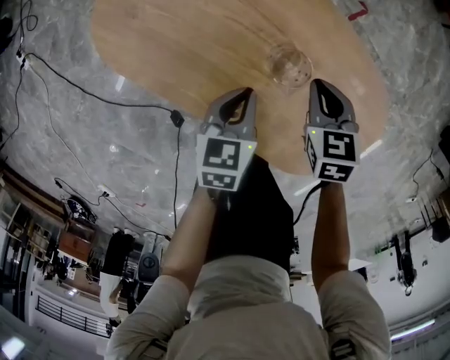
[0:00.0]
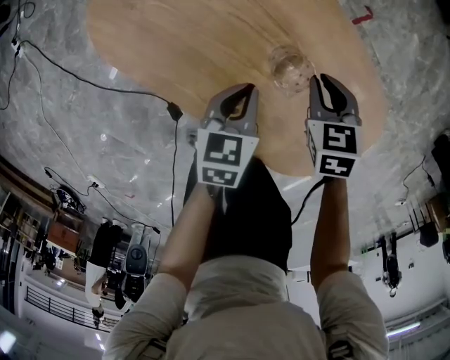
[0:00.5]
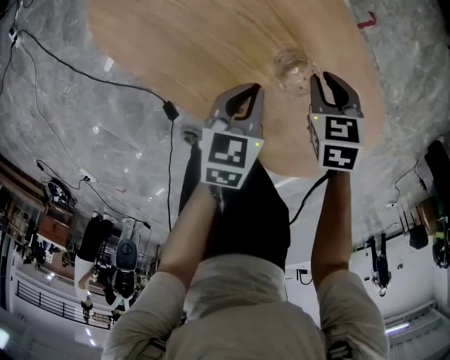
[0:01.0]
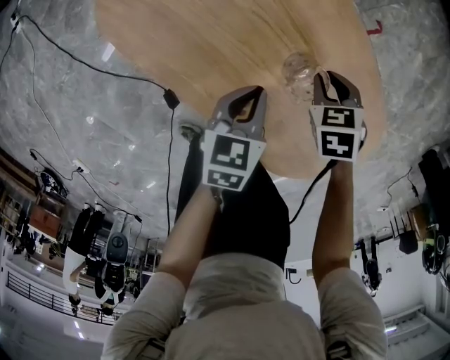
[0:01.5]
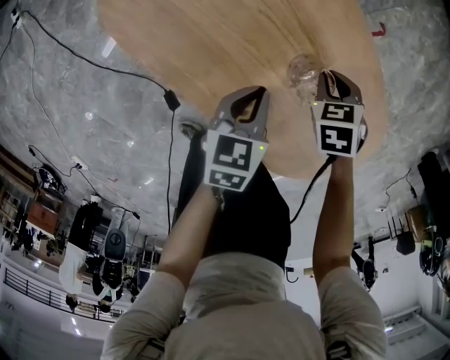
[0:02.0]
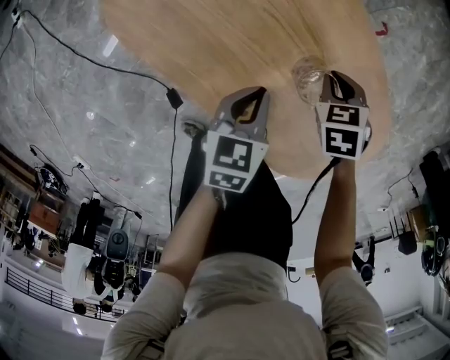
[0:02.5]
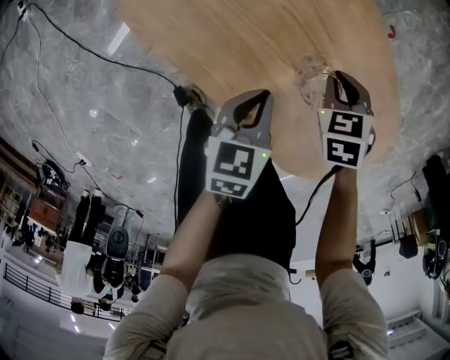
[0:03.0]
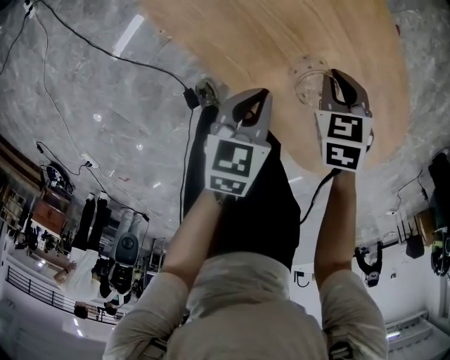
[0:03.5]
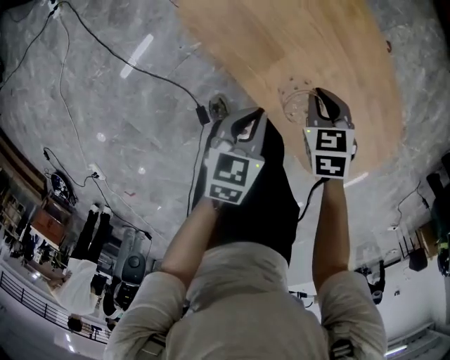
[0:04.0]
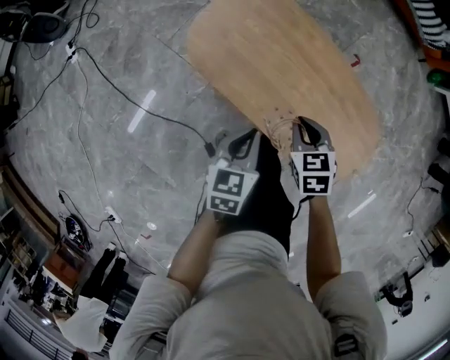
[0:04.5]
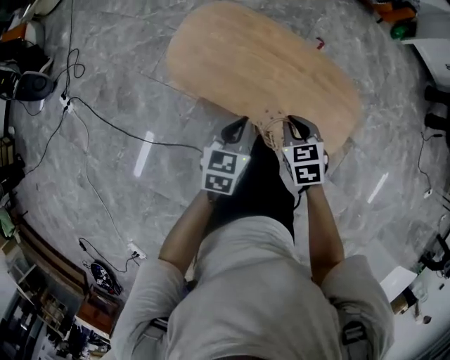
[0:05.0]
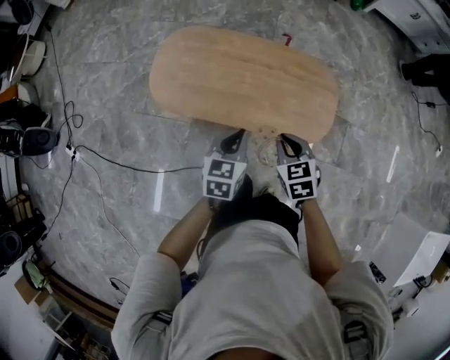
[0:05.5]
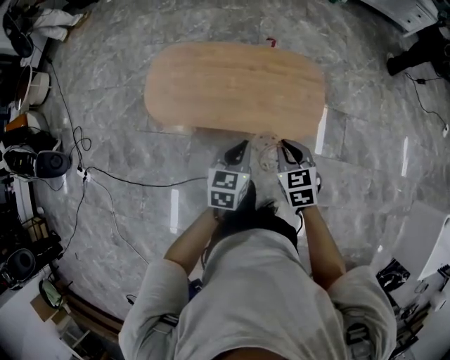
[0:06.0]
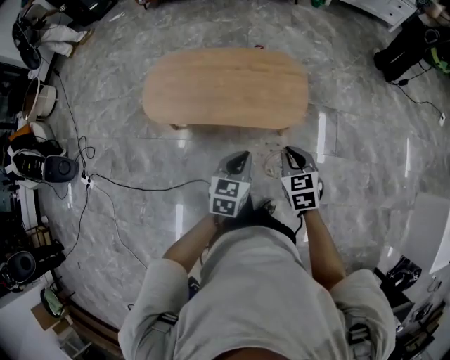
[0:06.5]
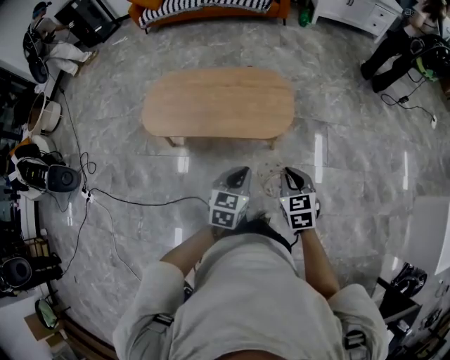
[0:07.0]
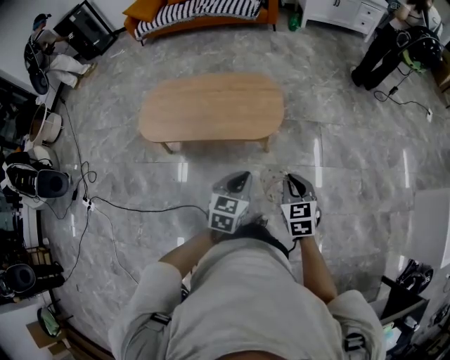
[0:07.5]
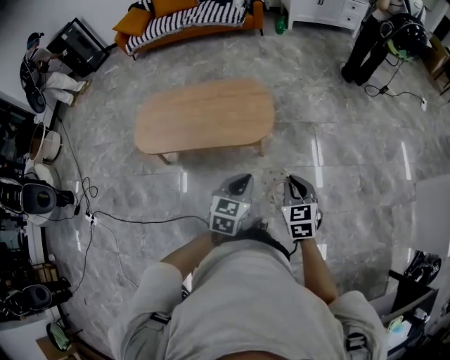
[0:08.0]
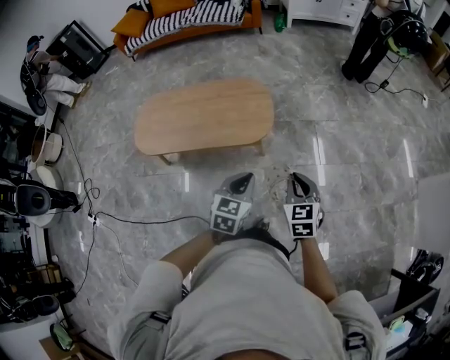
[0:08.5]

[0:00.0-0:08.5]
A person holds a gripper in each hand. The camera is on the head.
0:00.0 to 0:02.0: The right gripper goes some 10 cm downward, and changes its angle by roughly 30 degrees.
0:02.0 to 0:04.0: The left gripper ends up roughly 20 cm from where it was. Meanwhile the right gripper moves about 20 cm.
0:04.0 to 0:06.5: The right gripper moves some 60 cm, and changes its angle by approximately 50 degrees; the left gripper ends up about 40 cm from where it was, and rolls clockwise, seen from behind, by approximately 40 degrees.
0:06.5 to 0:08.5: Both grippers travel together to the right and backward, approximately 20 cm.

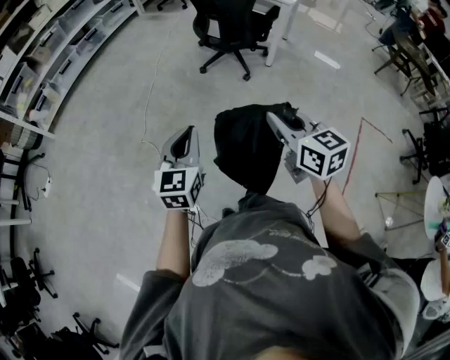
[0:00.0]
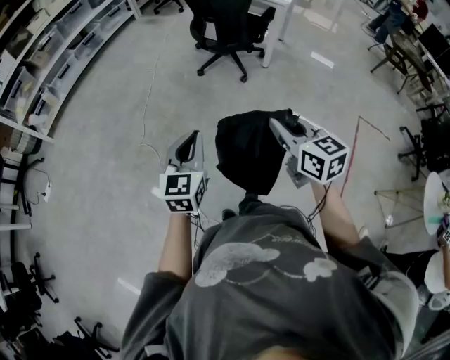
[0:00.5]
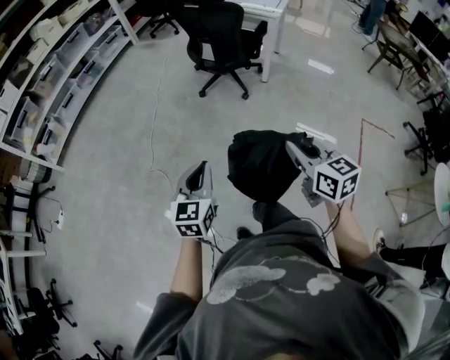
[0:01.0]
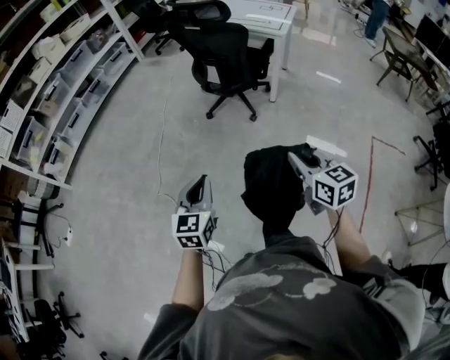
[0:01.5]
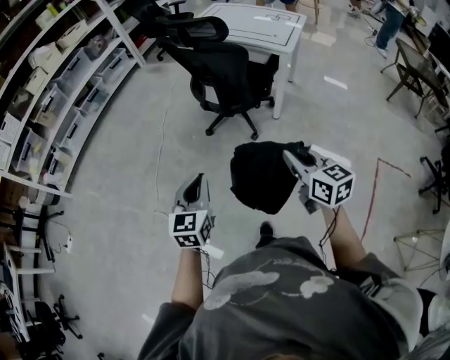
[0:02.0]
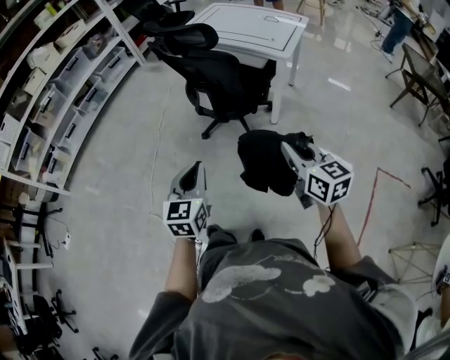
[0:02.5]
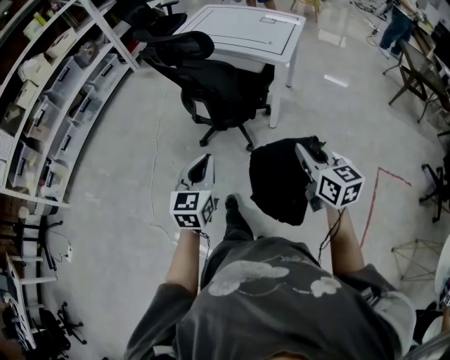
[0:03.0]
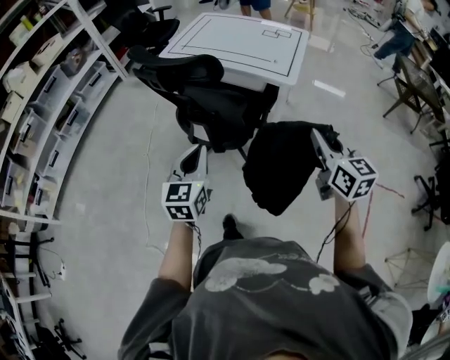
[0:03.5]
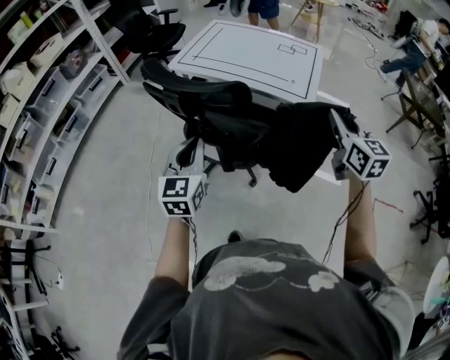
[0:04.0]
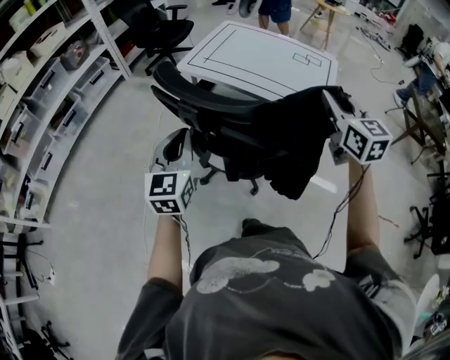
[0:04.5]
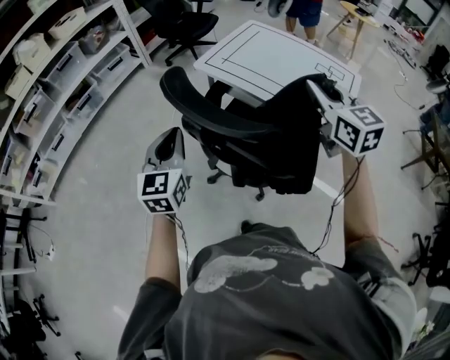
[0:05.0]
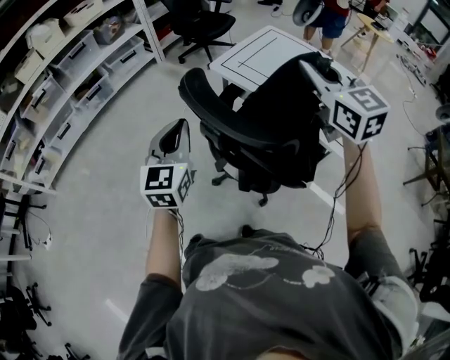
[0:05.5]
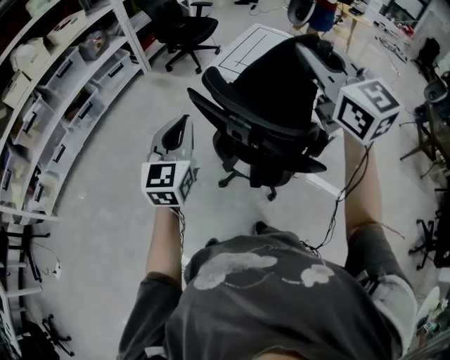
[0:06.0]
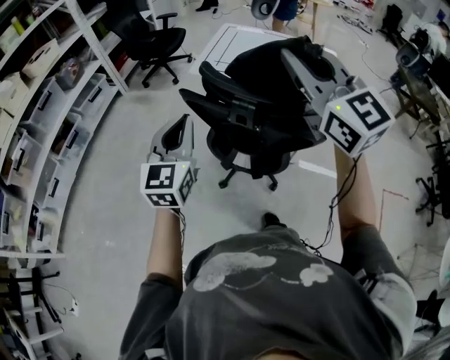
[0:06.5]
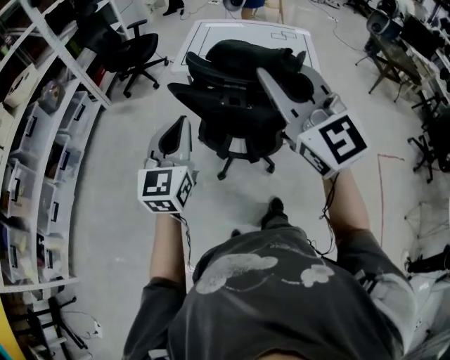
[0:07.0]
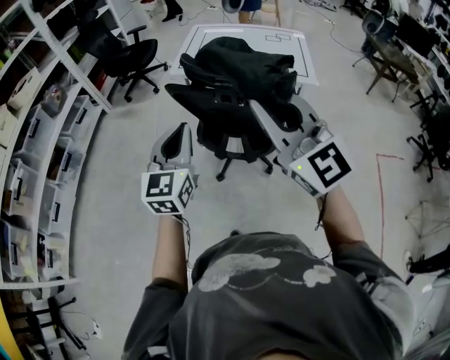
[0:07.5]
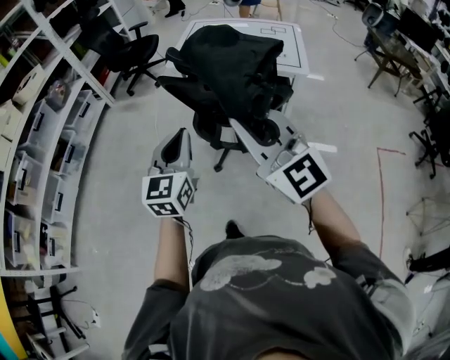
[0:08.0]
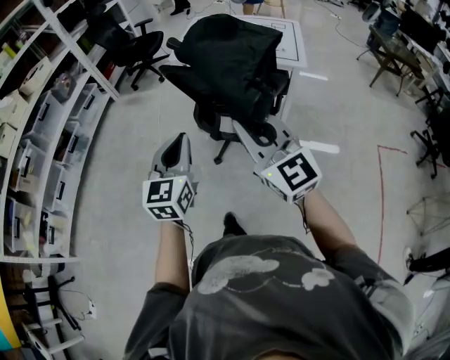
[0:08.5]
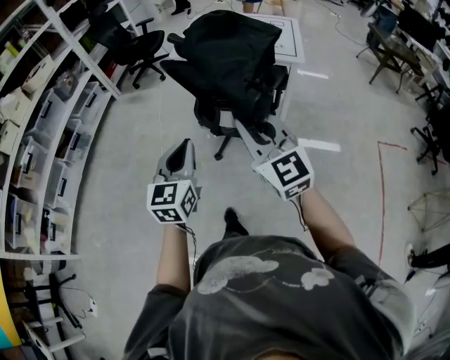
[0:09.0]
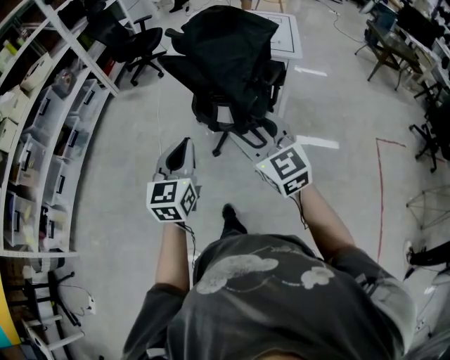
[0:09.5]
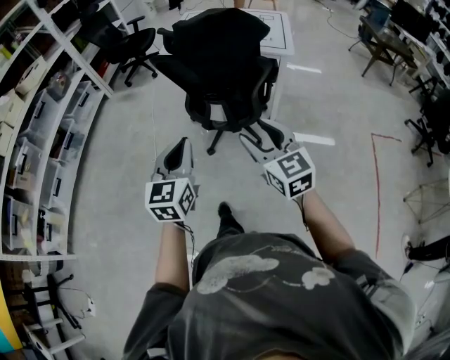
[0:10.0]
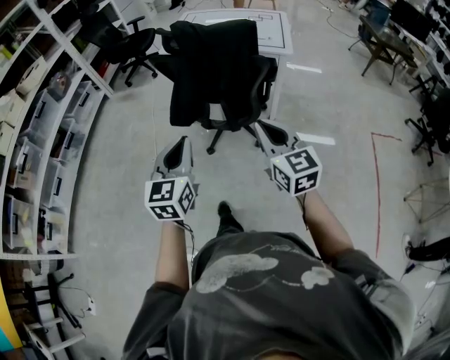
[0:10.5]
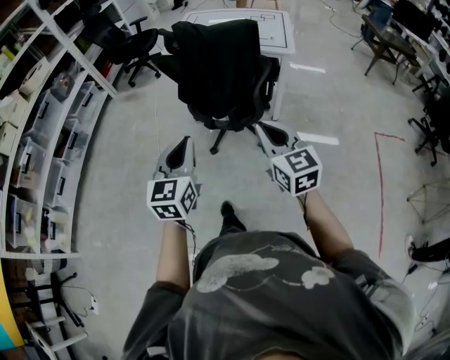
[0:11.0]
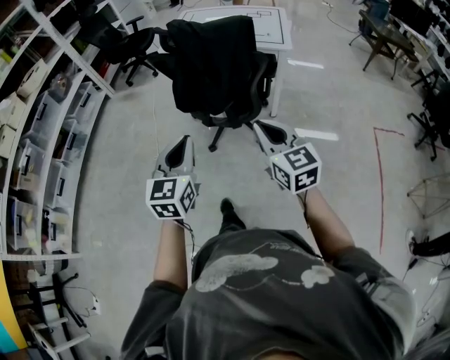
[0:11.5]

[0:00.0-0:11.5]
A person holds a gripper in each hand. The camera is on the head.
0:00.0 to 0:02.0: Both grippers travel together forward and to the right, roughly 30 cm.
0:02.0 to 0:04.0: The two grippers travel together, forward, about 50 cm. The right gripper turns by about 30 degrees.
0:04.0 to 0:06.0: The left gripper shifts some 20 cm to the left and forward. Meanwhile the right gripper heads to the left, forward and upward, covering some 40 cm, and changes its angle by about 40 degrees.
0:06.0 to 0:07.5: The left gripper travels backward by approximately 10 cm, and swivels some 20 degrees. The right gripper goes roughly 25 cm backward.
0:07.5 to 0:09.5: The right gripper moves backward and downward, approximately 20 cm, and opens its fingers. The left gripper shifts some 20 cm backward.
0:09.5 to 0:11.5: The right gripper moves to the right, approximately 10 cm, and closes.

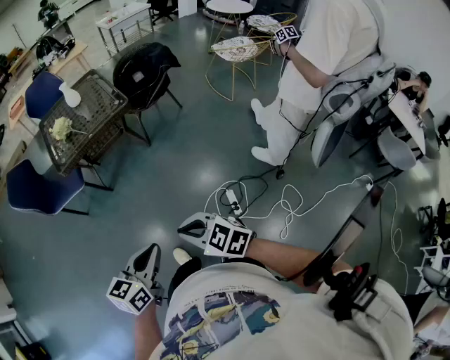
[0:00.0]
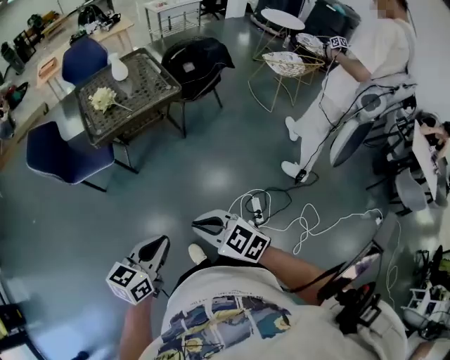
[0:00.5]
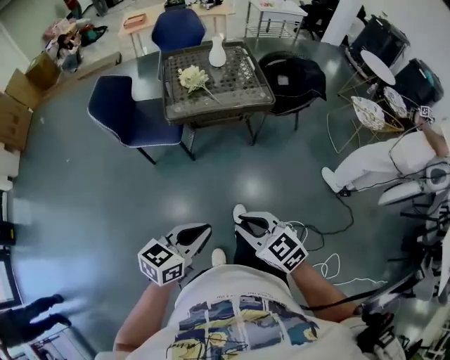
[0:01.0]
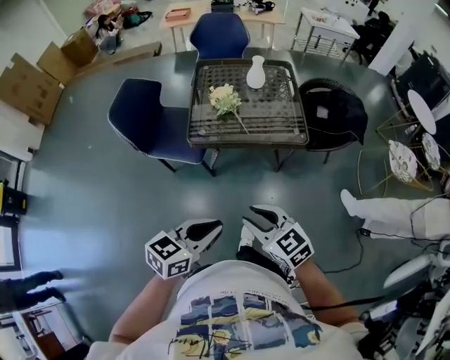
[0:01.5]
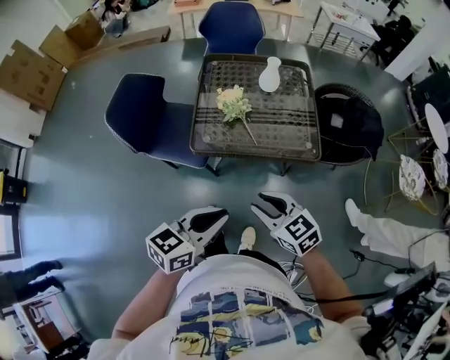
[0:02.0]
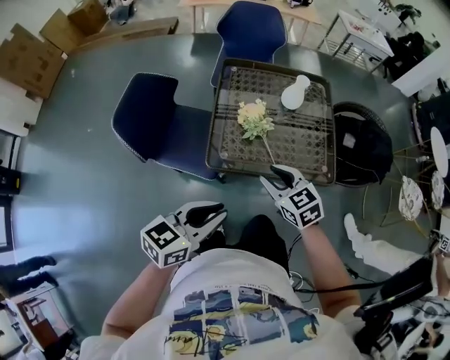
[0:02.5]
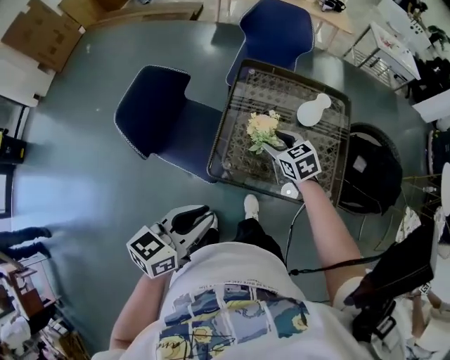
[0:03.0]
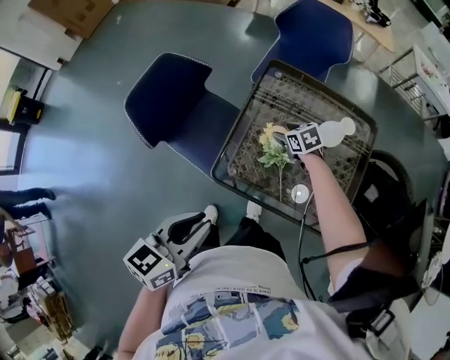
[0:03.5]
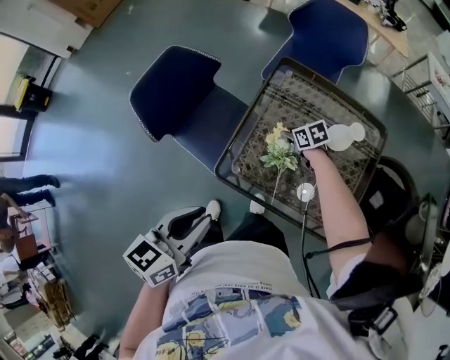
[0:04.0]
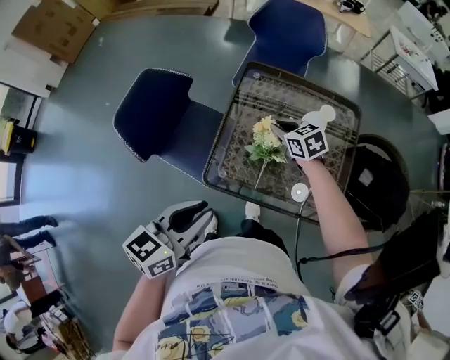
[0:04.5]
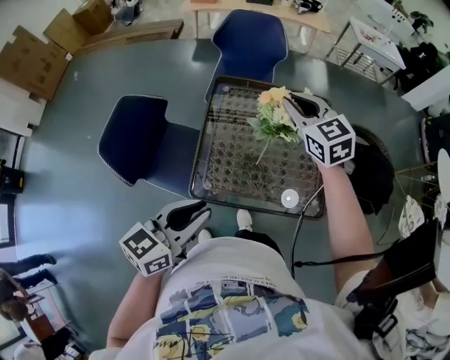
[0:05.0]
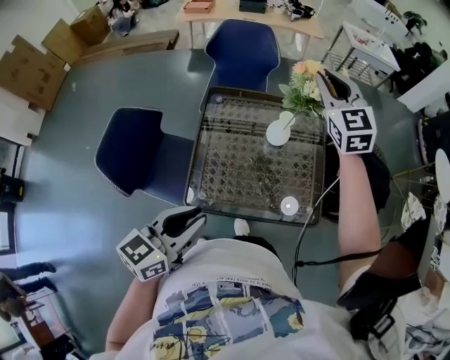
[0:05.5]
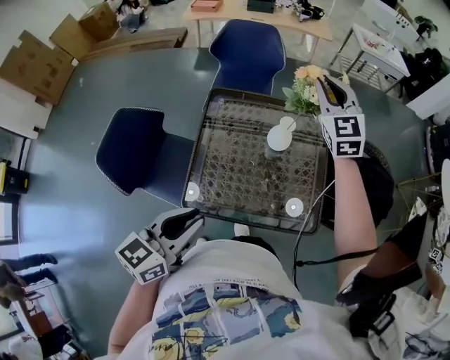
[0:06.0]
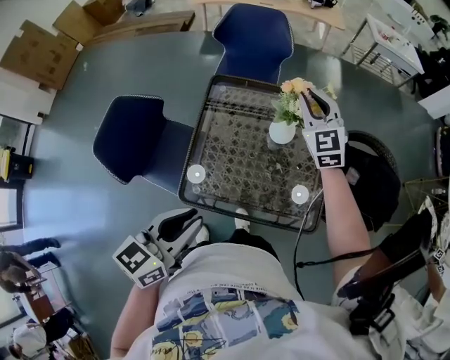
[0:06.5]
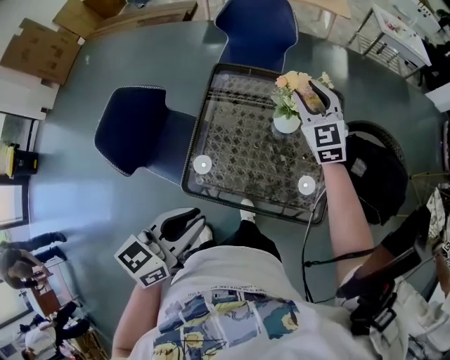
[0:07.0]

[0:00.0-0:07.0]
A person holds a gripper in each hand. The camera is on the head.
0:00.0 to 0:02.0: The two grippers travel together, forward, roughly 50 cm. The right gripper opens its fingers.
0:02.0 to 0:03.5: The left gripper changes place by roughly 25 cm, and swivels some 30 degrees; the right gripper changes place by some 50 cm, rotates about 30 degrees, and opens its fingers.
0:03.5 to 0:05.0: The left gripper ends up roughly 5 cm from where it was, and swivels roughly 20 degrees; the right gripper shifts approximately 35 cm upward, angles its fingers upward, by about 30 degrees, and closes its fingers.
0:05.0 to 0:07.0: The left gripper goes approximately 5 cm to the right. Meanwhile the right gripper is displaced forward, downward and to the right by some 15 cm, and opens up.
